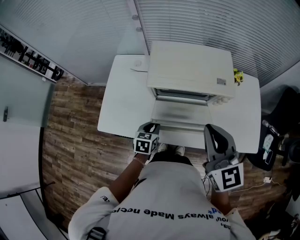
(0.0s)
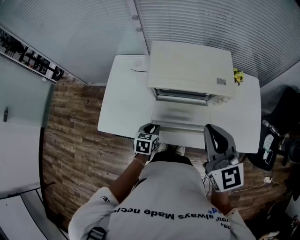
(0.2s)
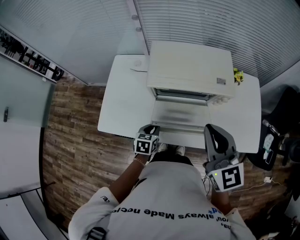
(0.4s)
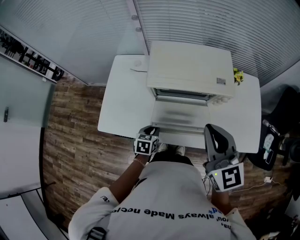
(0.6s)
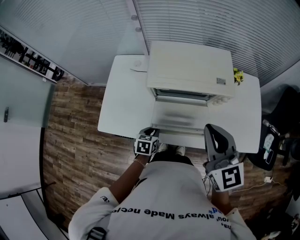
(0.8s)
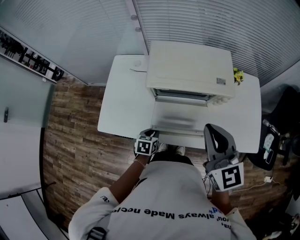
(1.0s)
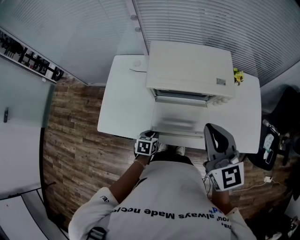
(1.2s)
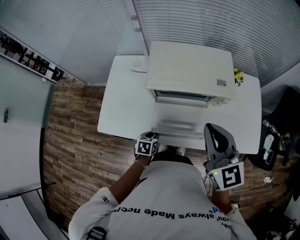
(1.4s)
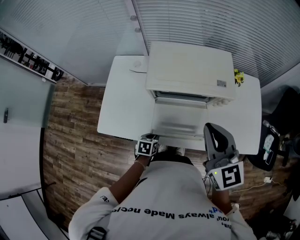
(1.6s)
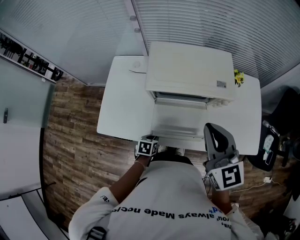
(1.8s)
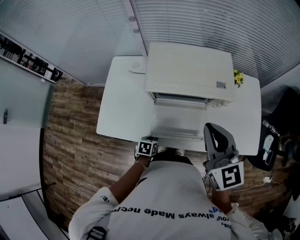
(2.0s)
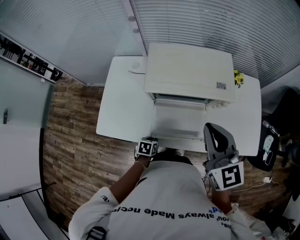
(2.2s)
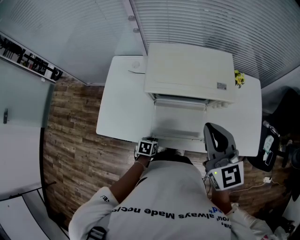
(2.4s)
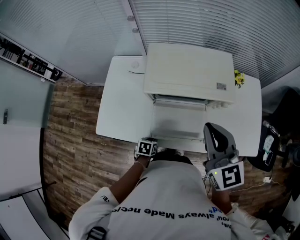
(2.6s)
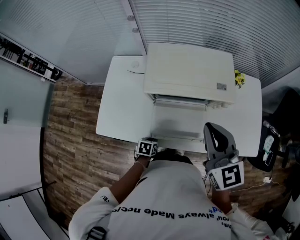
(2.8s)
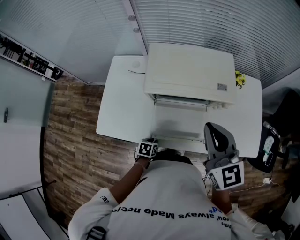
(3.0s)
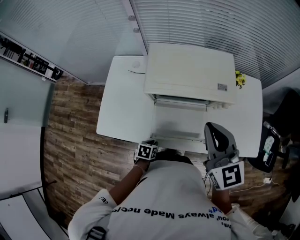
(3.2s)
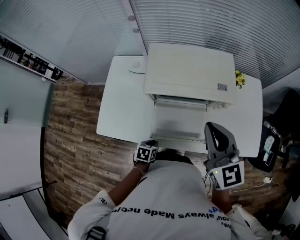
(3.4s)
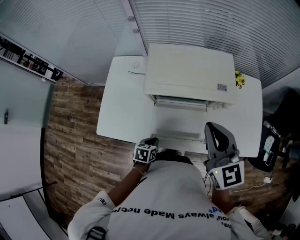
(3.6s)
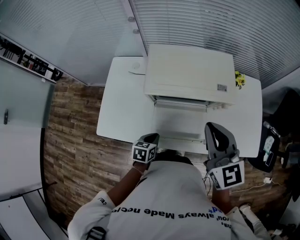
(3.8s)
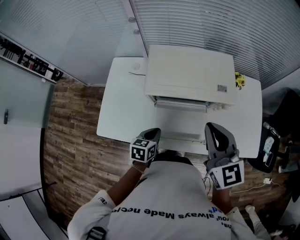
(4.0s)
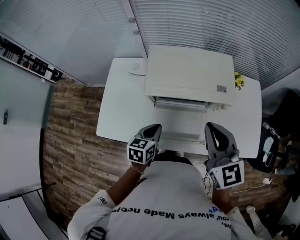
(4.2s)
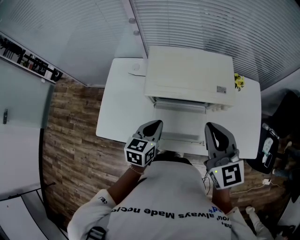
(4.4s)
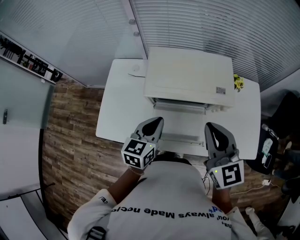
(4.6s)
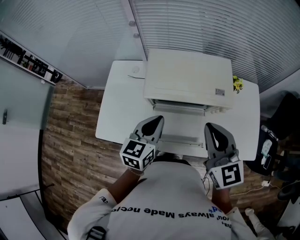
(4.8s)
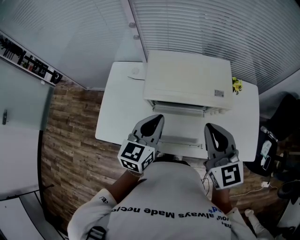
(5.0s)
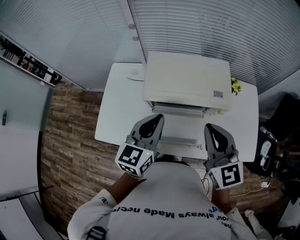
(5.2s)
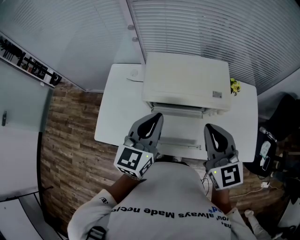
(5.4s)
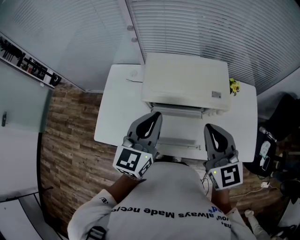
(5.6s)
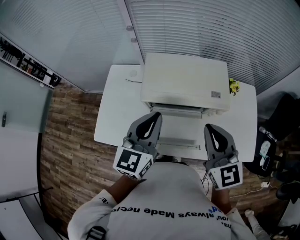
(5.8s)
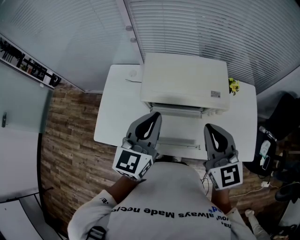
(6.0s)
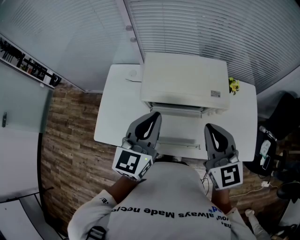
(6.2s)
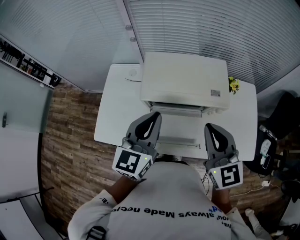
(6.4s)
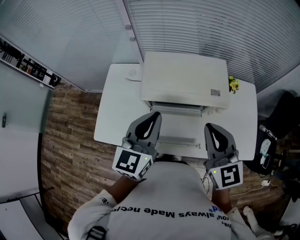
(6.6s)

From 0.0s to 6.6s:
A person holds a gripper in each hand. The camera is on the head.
From 0.0s to 1.6s: The left gripper goes roughly 10 cm downward.
From 1.6s to 3.2s: The grippers stay close to where they were, moving slightly.
From 3.2s to 5.0s: The left gripper travels upward by approximately 35 cm, and angles its fingers upward, by approximately 50 degrees.
From 5.0s to 6.6s: The left gripper heads upward, covering about 5 cm.

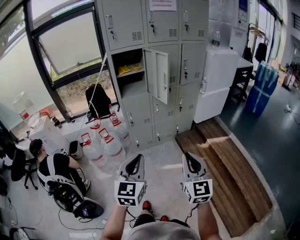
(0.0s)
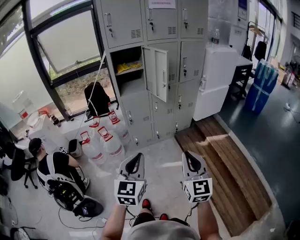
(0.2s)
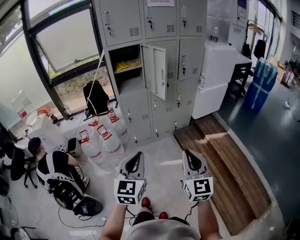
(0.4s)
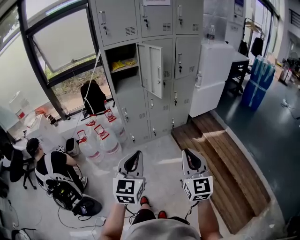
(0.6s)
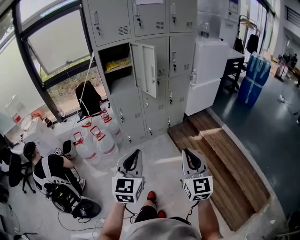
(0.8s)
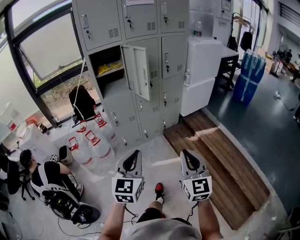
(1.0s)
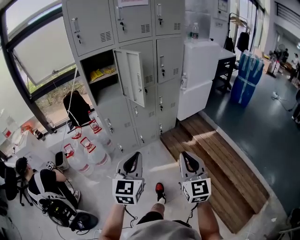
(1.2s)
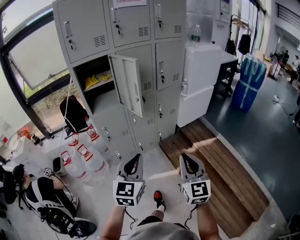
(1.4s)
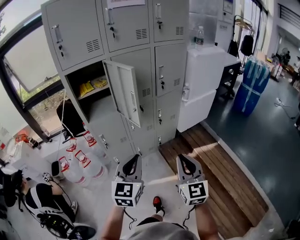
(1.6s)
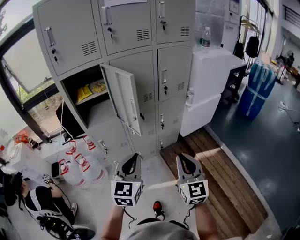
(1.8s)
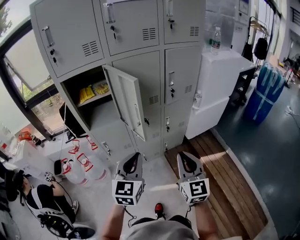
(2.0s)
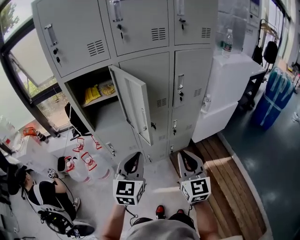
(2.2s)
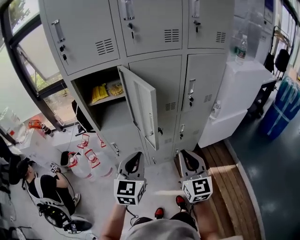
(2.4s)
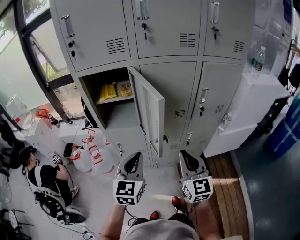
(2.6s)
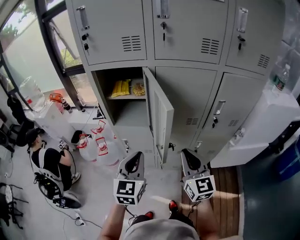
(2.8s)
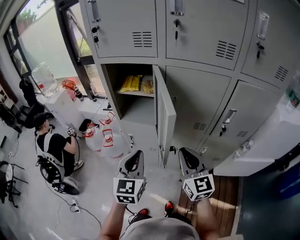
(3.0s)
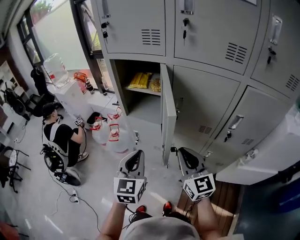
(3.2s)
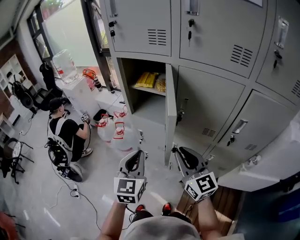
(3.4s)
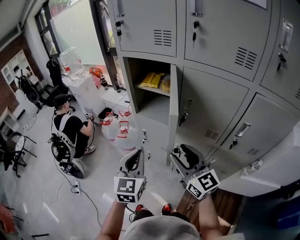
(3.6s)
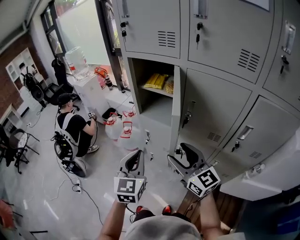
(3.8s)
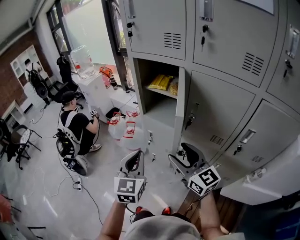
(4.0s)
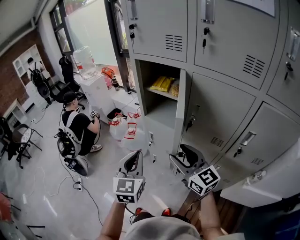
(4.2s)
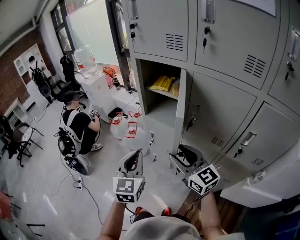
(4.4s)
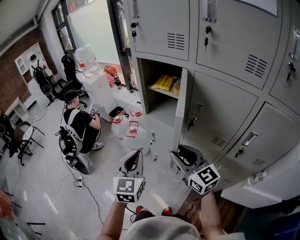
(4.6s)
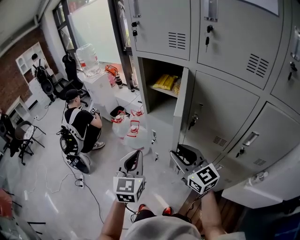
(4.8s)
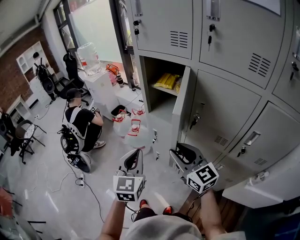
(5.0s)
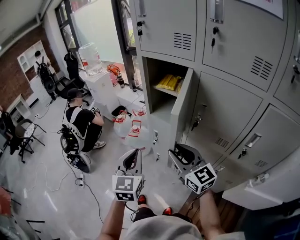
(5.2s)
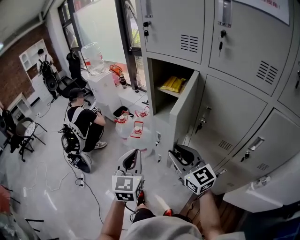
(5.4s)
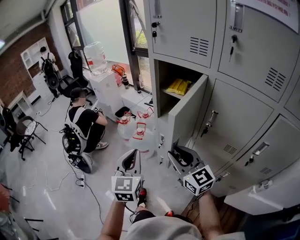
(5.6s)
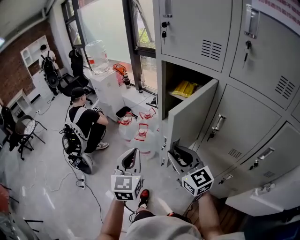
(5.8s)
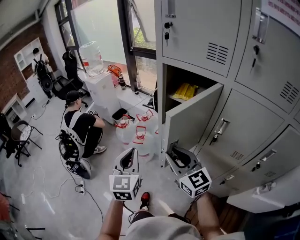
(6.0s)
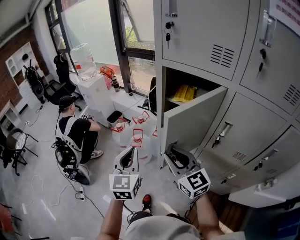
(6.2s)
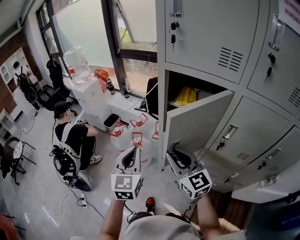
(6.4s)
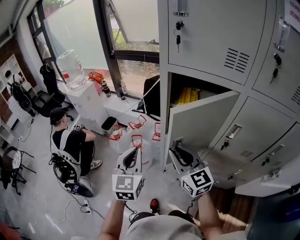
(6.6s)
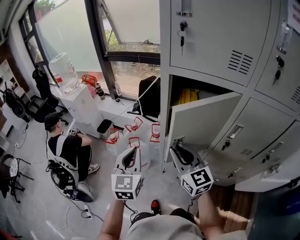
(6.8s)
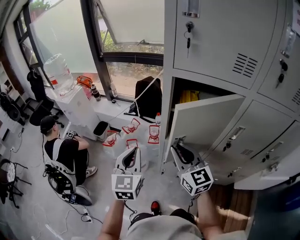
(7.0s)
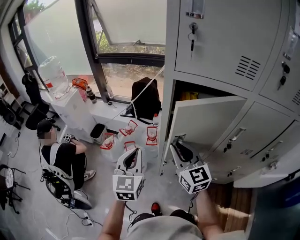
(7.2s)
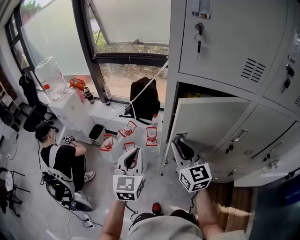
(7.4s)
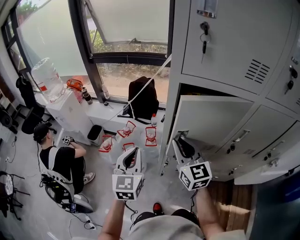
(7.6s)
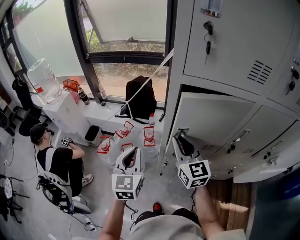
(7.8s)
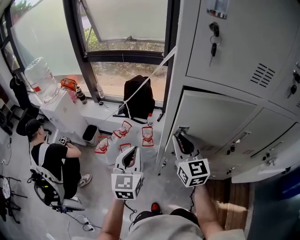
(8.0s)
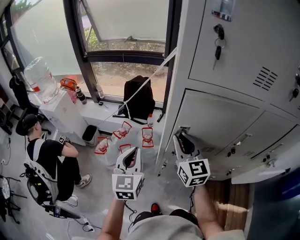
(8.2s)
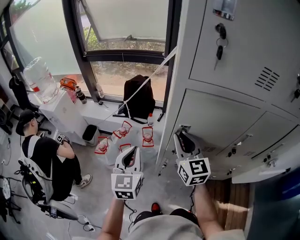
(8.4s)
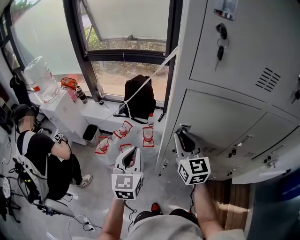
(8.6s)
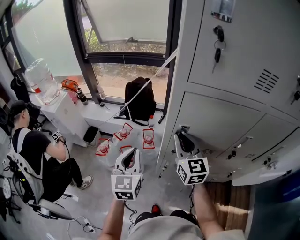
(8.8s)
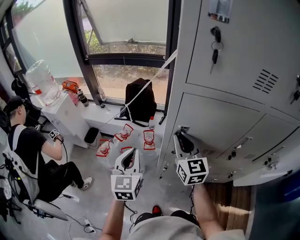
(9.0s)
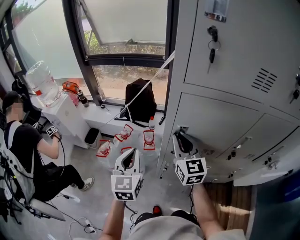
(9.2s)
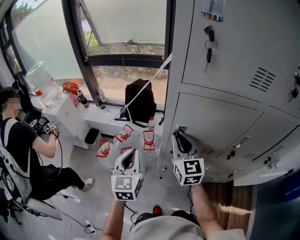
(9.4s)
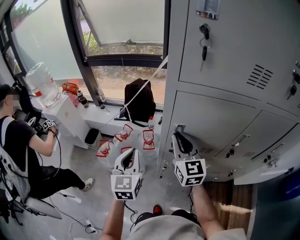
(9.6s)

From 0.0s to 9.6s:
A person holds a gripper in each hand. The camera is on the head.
From 0.0s to 1.6s: Both grippers move forward and to the right, about 25 cm.
From 1.6s to 3.2s: The left gripper changes place by about 25 cm, and swivels approximately 50 degrees, while the right gripper changes place by roughly 35 cm, and changes its angle by approximately 50 degrees.
From 3.2s to 4.8s: The right gripper shifts approximately 5 cm to the left, swivels roughly 30 degrees, and opens up.
From 4.8s to 6.4s: The grippers both shift forward and to the left by roughly 20 cm.
From 6.4s to 8.0s: The two grippers go some 15 cm forward. The right gripper turns by roughly 30 degrees.
From 8.0s to 9.6s: The grippers make only small movements.

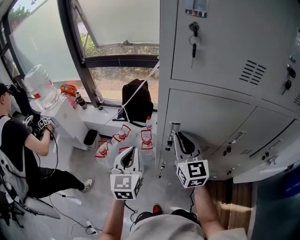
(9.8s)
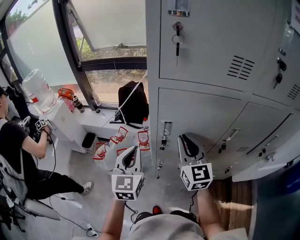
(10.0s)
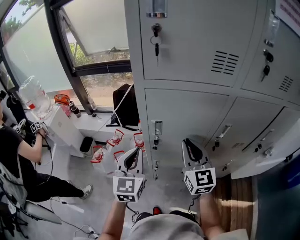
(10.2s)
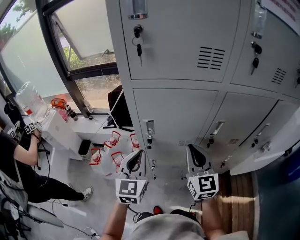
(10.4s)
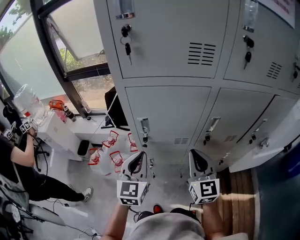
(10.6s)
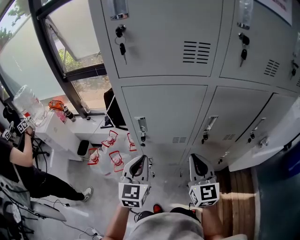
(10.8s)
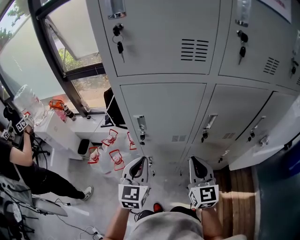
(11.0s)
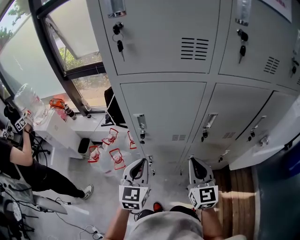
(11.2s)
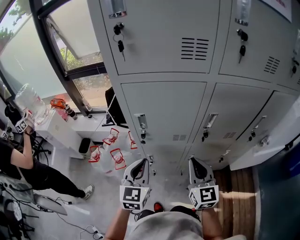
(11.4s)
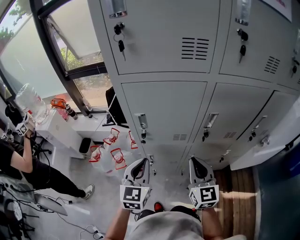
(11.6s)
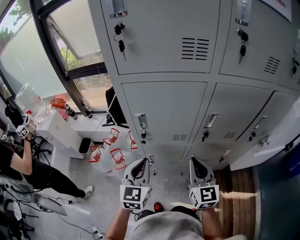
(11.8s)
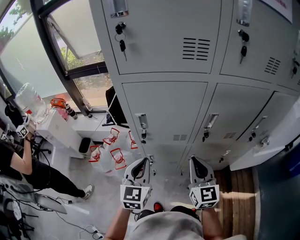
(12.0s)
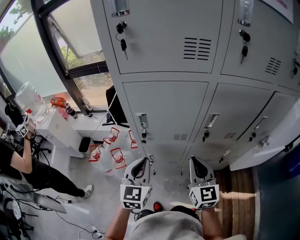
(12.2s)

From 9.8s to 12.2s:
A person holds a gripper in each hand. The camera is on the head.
From 9.8s to 11.0s: The right gripper heads to the right and backward, covering about 20 cm; the left gripper moves to the right, approximately 15 cm.
From 11.0s to 12.2s: The two grippers keep their place.

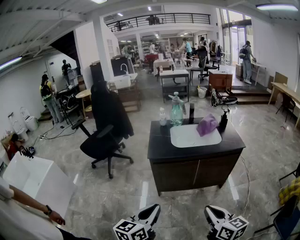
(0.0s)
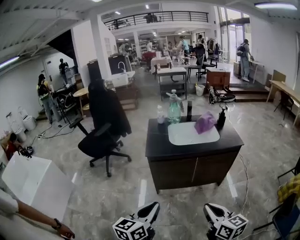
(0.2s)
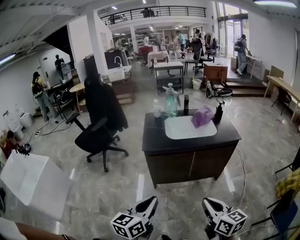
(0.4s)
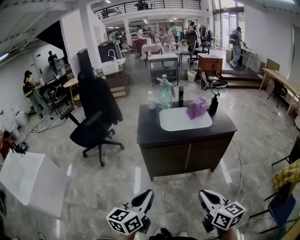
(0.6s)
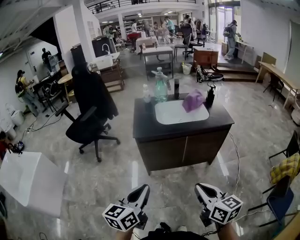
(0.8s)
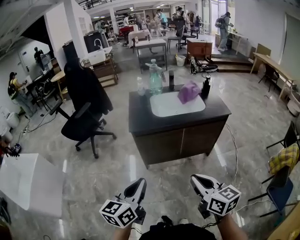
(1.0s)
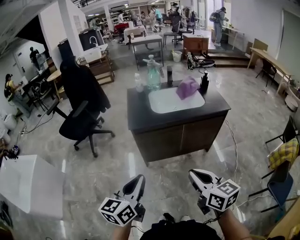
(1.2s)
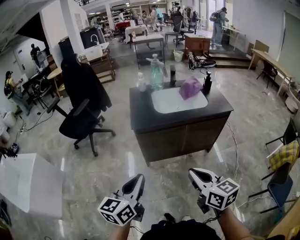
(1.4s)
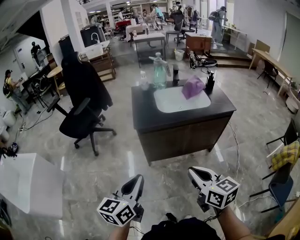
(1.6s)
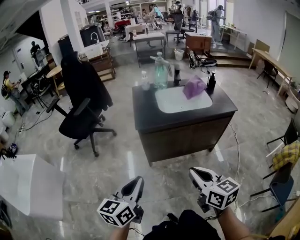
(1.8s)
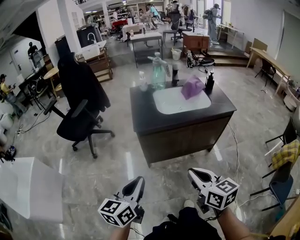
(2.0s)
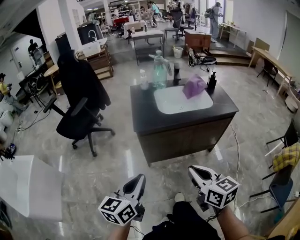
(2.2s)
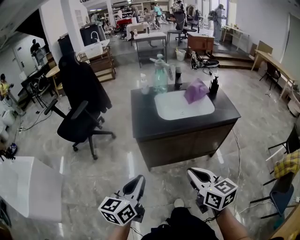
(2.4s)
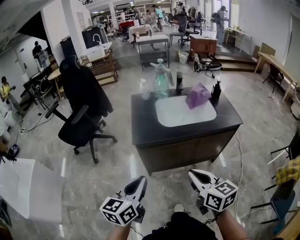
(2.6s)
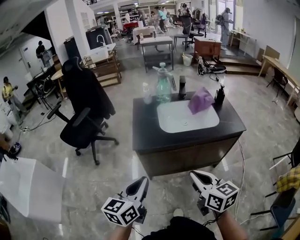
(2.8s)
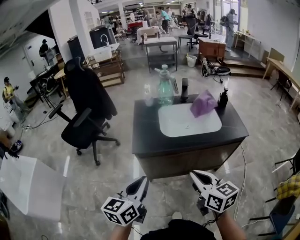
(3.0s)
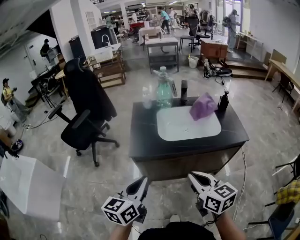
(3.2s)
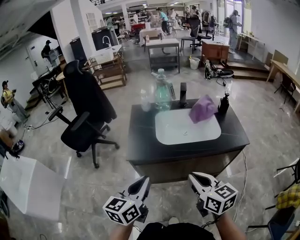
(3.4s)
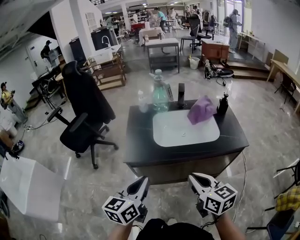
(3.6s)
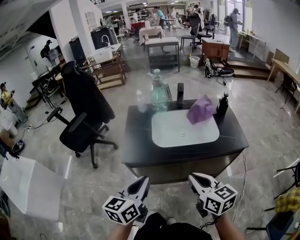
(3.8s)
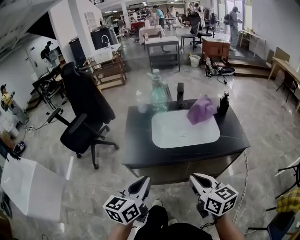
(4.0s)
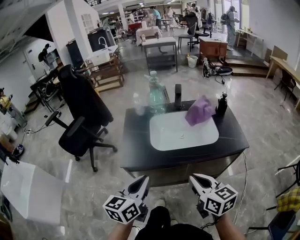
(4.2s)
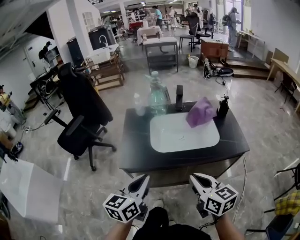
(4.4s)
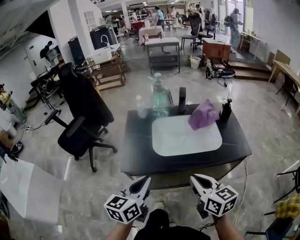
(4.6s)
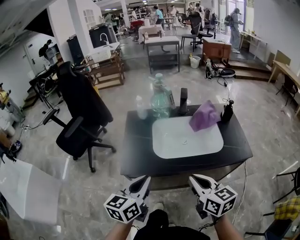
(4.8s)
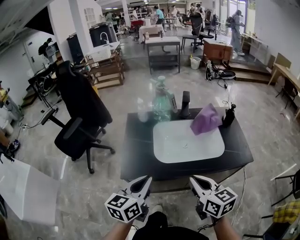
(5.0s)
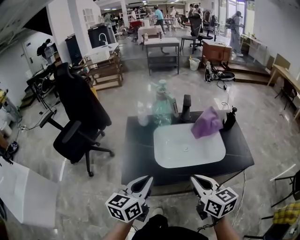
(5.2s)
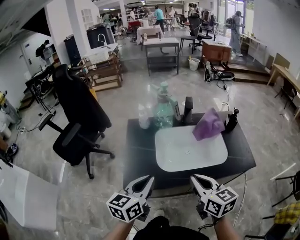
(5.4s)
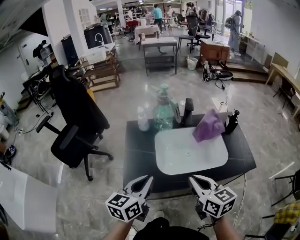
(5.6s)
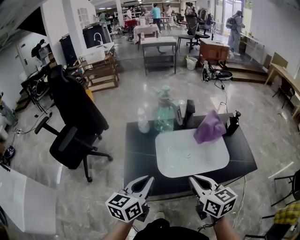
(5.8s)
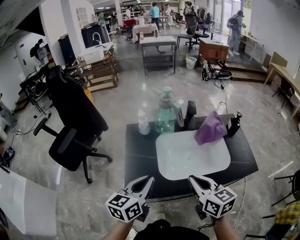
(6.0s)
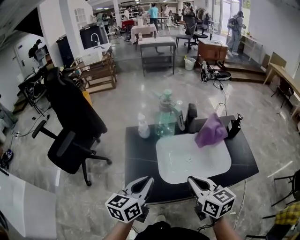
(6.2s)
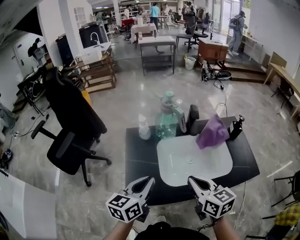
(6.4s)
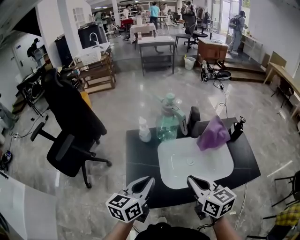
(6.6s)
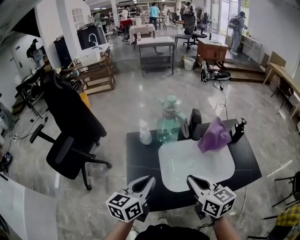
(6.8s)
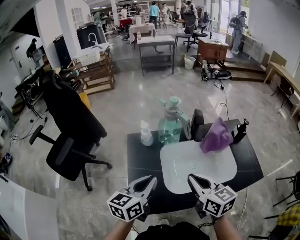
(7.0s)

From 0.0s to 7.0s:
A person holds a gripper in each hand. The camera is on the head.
From 0.0s to 1.4s: The grippers both shift to the left and forward by some 10 cm.
From 1.4s to 2.8s: Both grippers travel together forward, about 15 cm.
From 2.8s to 4.2s: The two grippers go some 15 cm forward and to the right.
From 4.2s to 5.6s: Both grippers travel together forward, roughly 15 cm.
From 5.6s to 7.0s: The left gripper heads forward, covering some 15 cm, while the right gripper goes roughly 15 cm forward and to the left.
